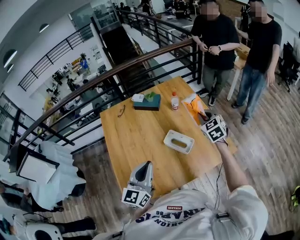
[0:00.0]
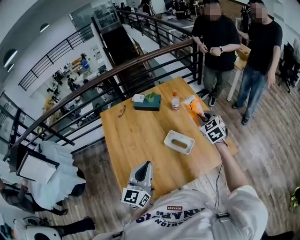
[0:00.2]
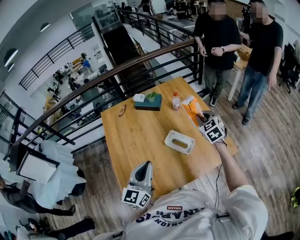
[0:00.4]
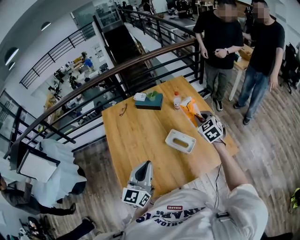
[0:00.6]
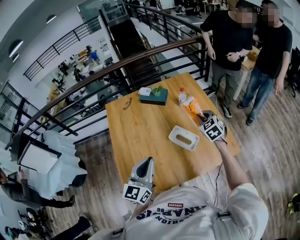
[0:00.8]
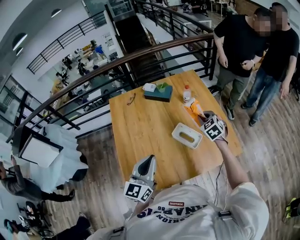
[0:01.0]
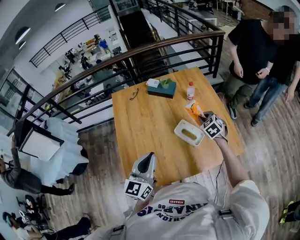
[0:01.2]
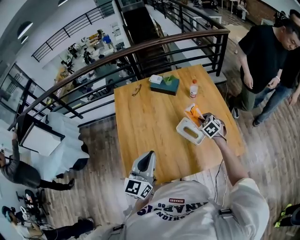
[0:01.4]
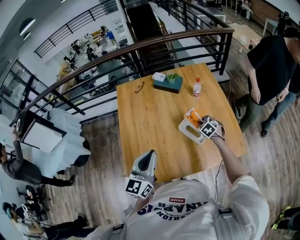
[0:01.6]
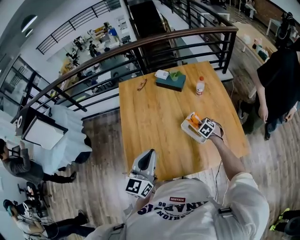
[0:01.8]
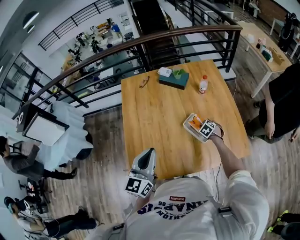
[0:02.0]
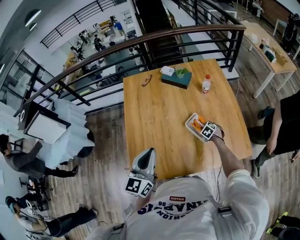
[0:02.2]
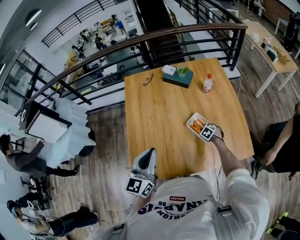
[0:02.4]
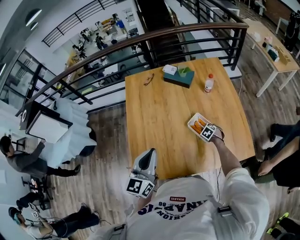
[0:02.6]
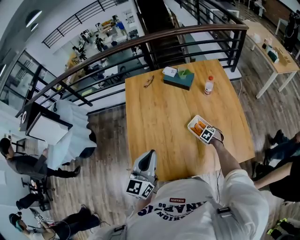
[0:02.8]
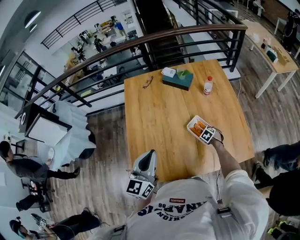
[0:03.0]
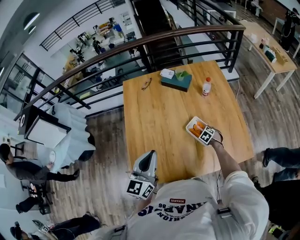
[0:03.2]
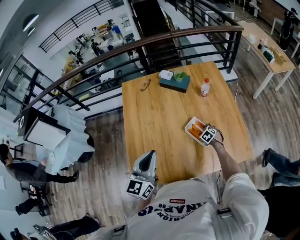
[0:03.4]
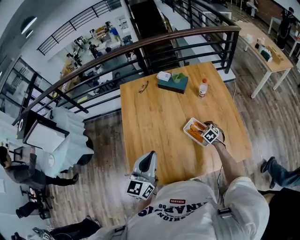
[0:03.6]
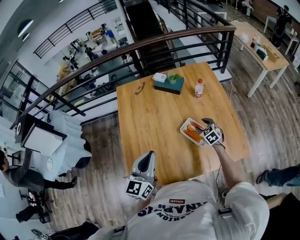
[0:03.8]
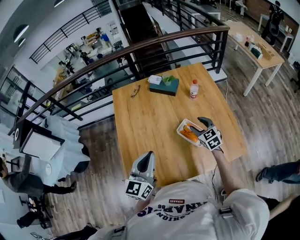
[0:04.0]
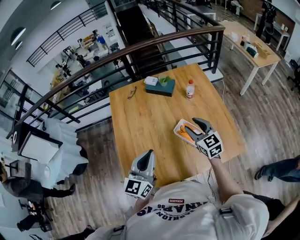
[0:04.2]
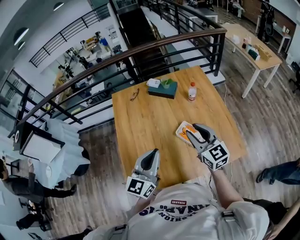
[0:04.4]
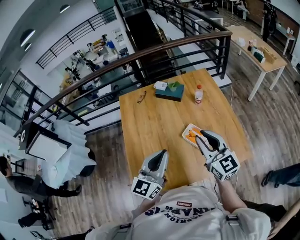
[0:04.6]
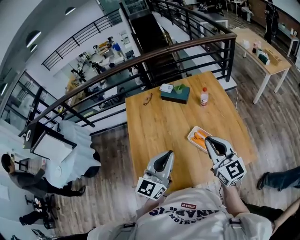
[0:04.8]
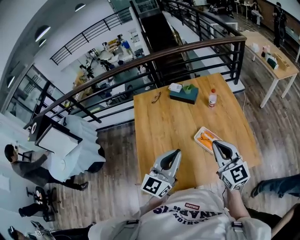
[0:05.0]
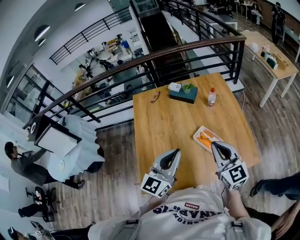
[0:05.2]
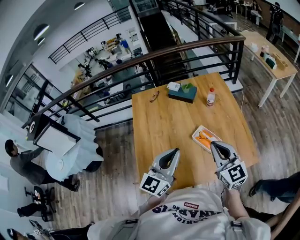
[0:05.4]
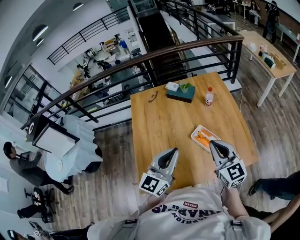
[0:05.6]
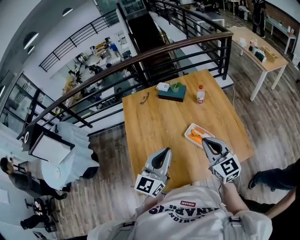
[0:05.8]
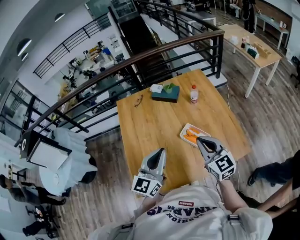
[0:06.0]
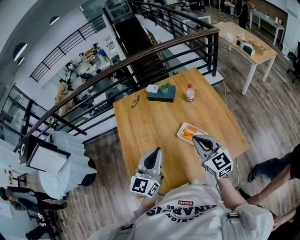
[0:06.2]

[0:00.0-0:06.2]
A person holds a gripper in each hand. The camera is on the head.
0:00.0 to 0:01.6: The left gripper heads to the left, covering some 5 cm. The right gripper shifts about 25 cm downward and to the left, and turns by about 30 degrees.
0:01.6 to 0:03.2: The right gripper is displaced downward by roughly 15 cm.
0:03.2 to 0:04.6: The right gripper heads upward, covering some 50 cm, points its fingers about 70 degrees further upward, and opens, then closes once more, while the left gripper travels to the right and upward by about 10 cm.
0:04.6 to 0:06.2: The grippers move only a little.

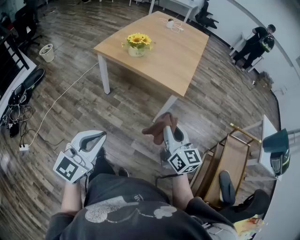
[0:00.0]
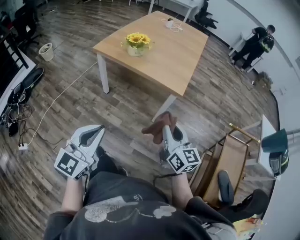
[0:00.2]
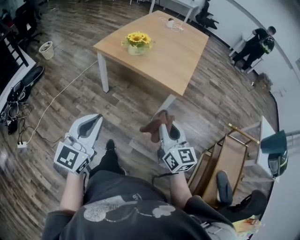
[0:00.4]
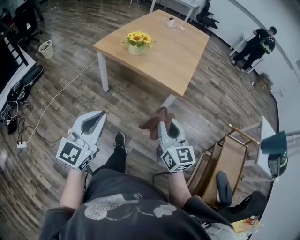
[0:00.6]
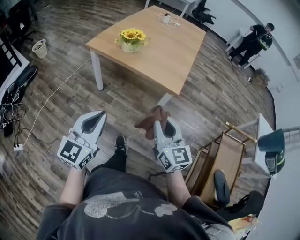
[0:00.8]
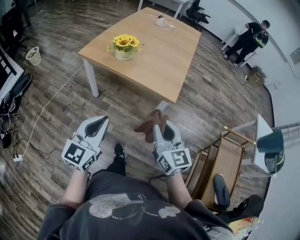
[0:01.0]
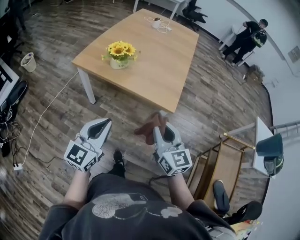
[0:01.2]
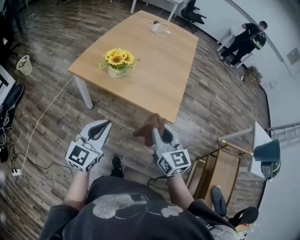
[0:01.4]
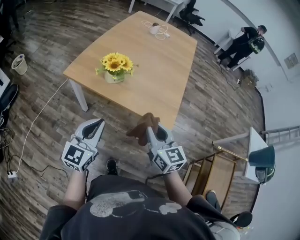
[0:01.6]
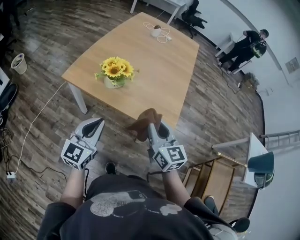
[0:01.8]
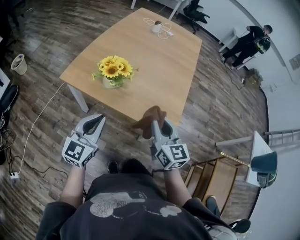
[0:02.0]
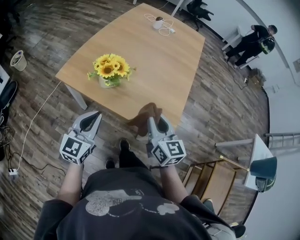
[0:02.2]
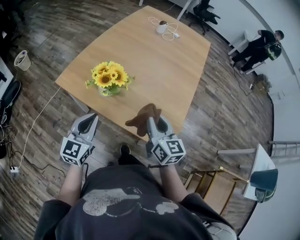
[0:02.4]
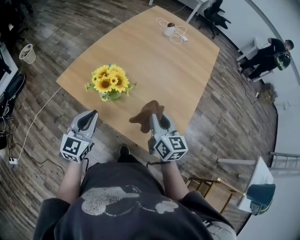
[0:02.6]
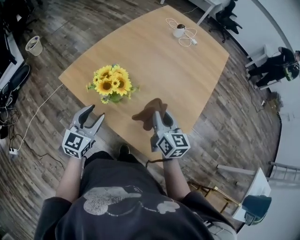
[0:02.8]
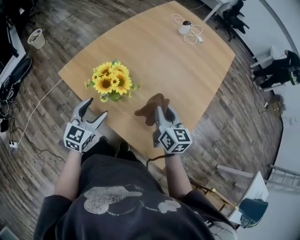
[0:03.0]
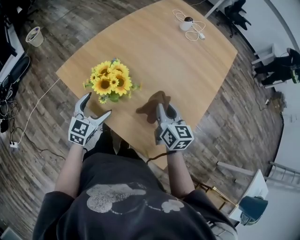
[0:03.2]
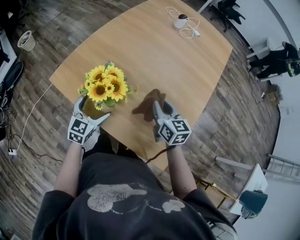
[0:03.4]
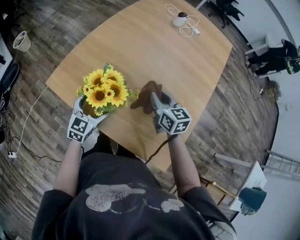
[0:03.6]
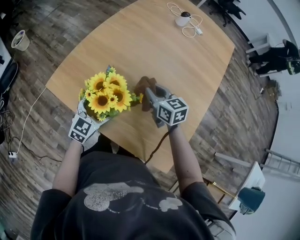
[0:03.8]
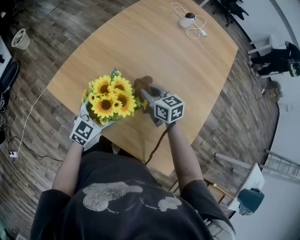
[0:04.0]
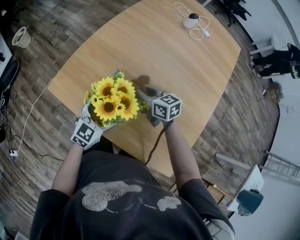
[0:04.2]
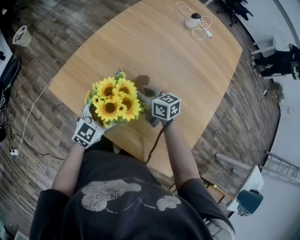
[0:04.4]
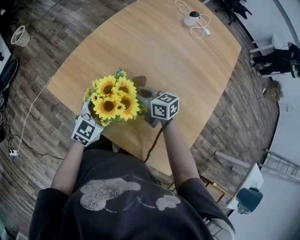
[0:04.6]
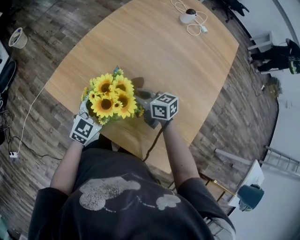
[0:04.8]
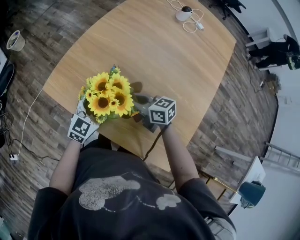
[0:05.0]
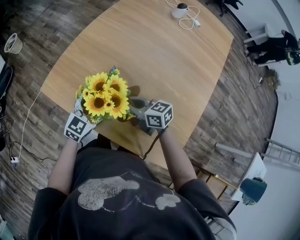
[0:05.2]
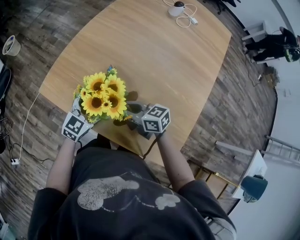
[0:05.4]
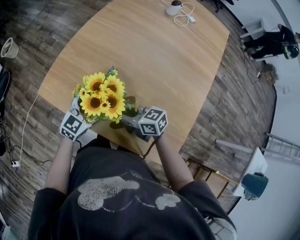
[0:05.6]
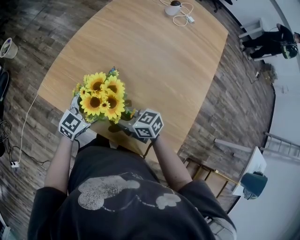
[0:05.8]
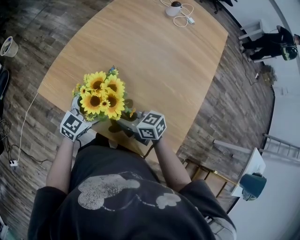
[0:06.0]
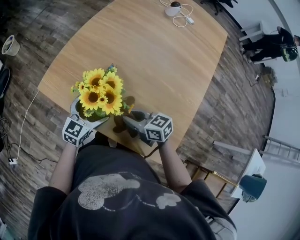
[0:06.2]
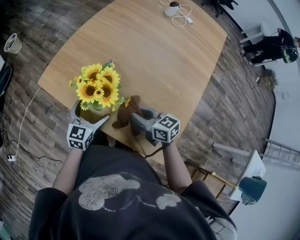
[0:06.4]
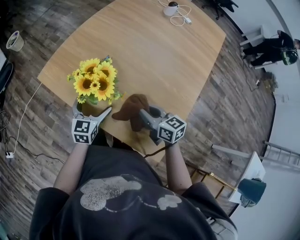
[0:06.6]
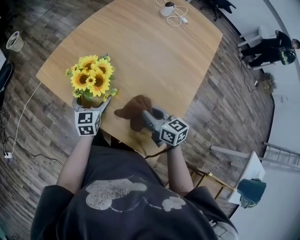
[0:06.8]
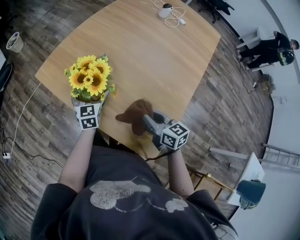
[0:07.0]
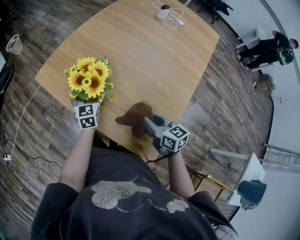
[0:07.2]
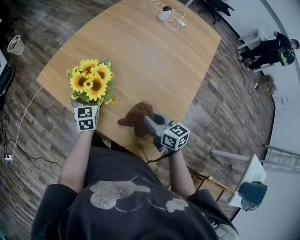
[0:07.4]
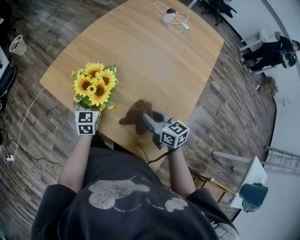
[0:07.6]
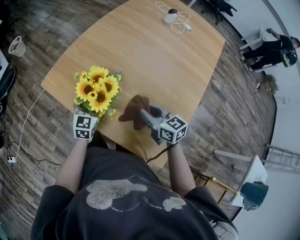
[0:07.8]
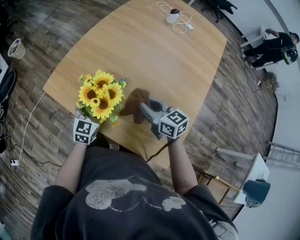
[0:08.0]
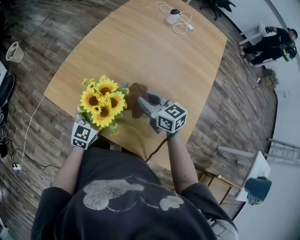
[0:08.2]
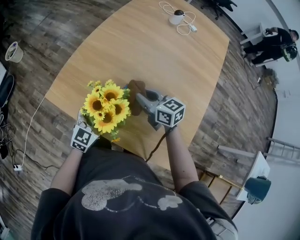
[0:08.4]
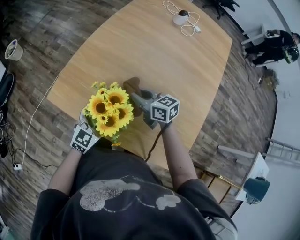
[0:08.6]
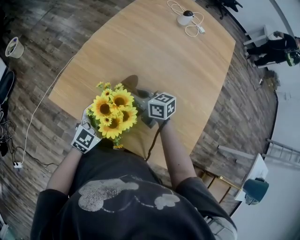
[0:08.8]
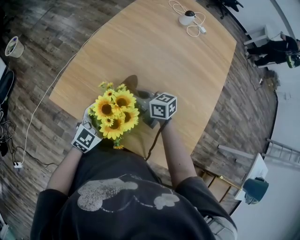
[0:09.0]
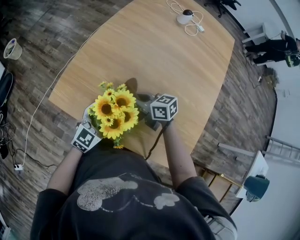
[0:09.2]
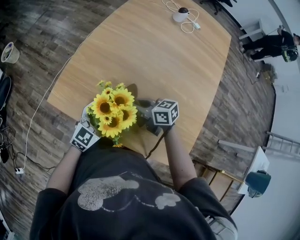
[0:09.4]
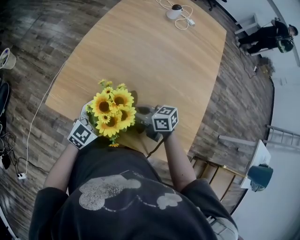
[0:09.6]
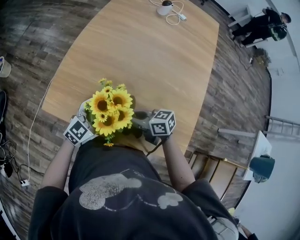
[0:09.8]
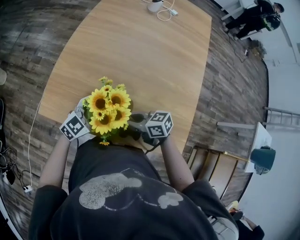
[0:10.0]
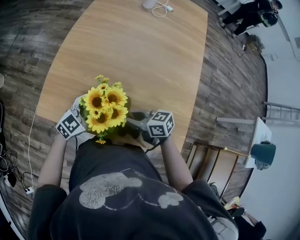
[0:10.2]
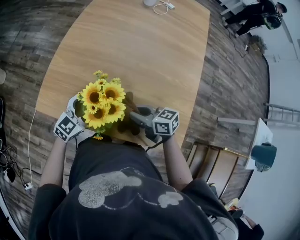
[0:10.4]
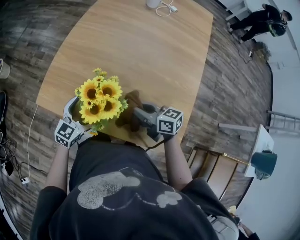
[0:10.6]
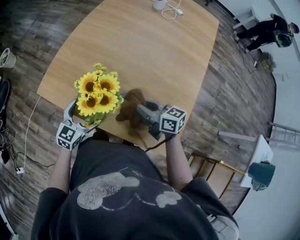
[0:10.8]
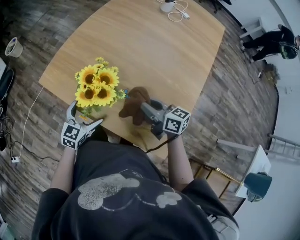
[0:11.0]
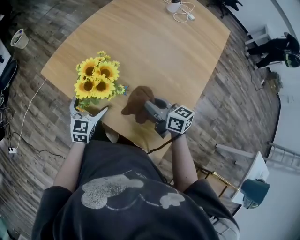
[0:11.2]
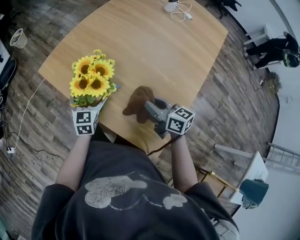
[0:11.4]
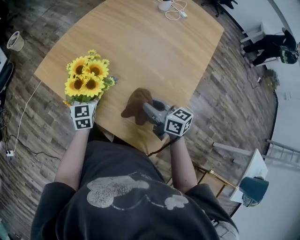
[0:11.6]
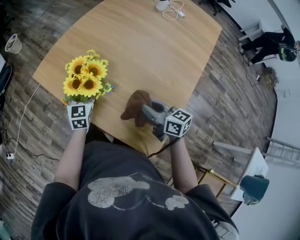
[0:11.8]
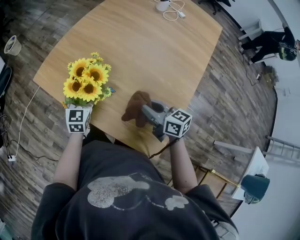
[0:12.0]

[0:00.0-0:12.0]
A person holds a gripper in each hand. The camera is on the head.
0:00.0 to 0:01.6: The grippers both shift forward by about 30 cm.
0:01.6 to 0:03.0: The left gripper heads forward and downward, covering about 25 cm, rotates roughly 20 degrees, and opens; the right gripper goes about 30 cm forward.
0:03.0 to 0:04.4: The left gripper heads forward and downward, covering about 10 cm; the right gripper moves to the left, forward and downward, some 20 cm, and turns by approximately 30 degrees.
0:04.4 to 0:06.0: The right gripper goes roughly 15 cm backward.
0:06.0 to 0:07.6: The left gripper rotates roughly 40 degrees. Meanwhile the right gripper shifts approximately 15 cm to the right, and turns by approximately 20 degrees.
0:07.6 to 0:09.0: The right gripper travels forward and to the left by approximately 25 cm, while the left gripper turns by some 40 degrees.
0:09.0 to 0:10.4: The right gripper changes place by approximately 15 cm.
0:10.4 to 0:12.0: The left gripper rotates roughly 50 degrees. The right gripper shifts by approximately 15 cm.

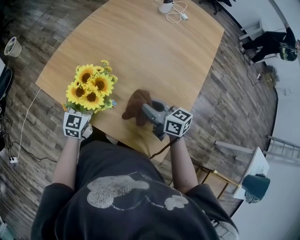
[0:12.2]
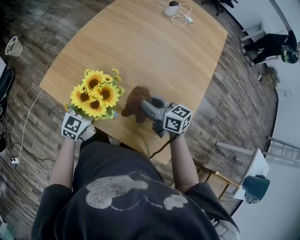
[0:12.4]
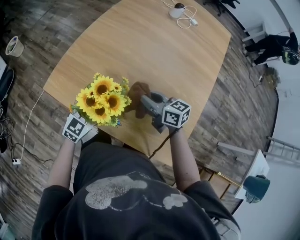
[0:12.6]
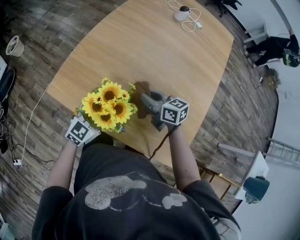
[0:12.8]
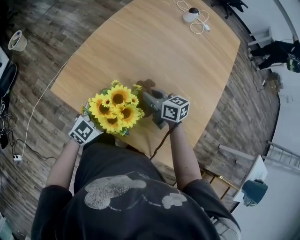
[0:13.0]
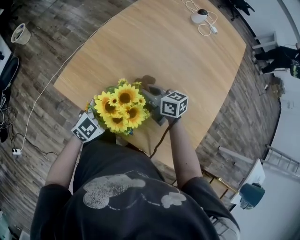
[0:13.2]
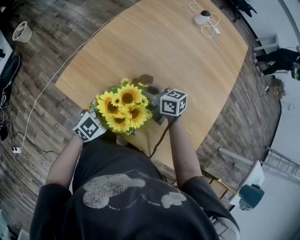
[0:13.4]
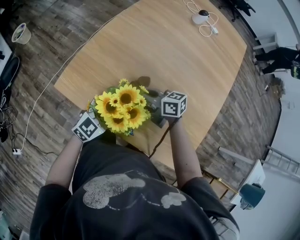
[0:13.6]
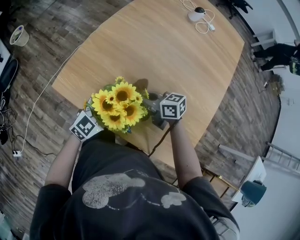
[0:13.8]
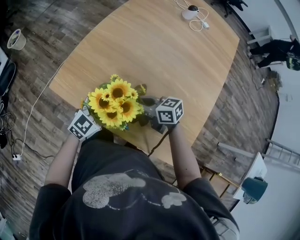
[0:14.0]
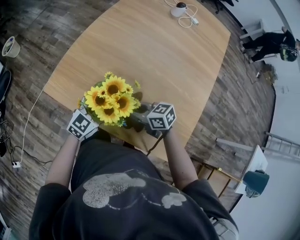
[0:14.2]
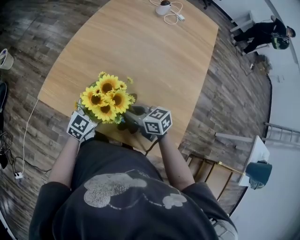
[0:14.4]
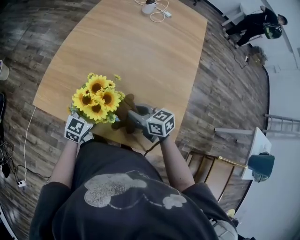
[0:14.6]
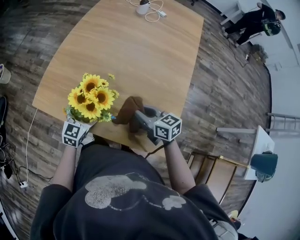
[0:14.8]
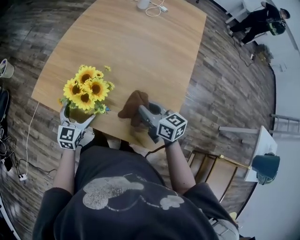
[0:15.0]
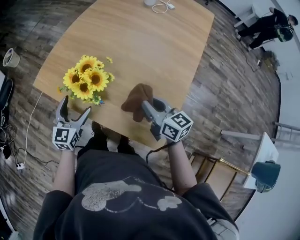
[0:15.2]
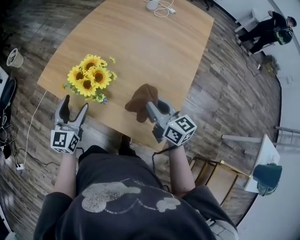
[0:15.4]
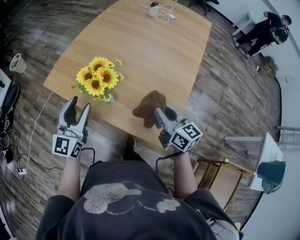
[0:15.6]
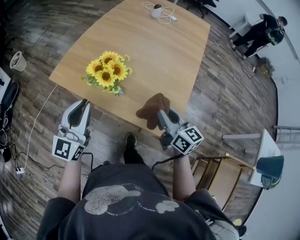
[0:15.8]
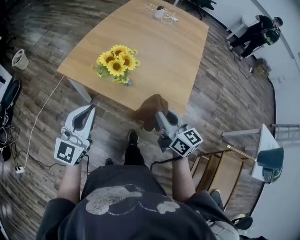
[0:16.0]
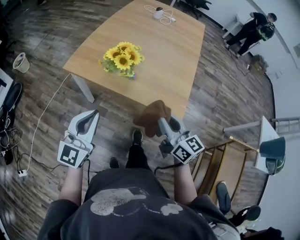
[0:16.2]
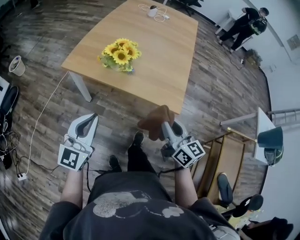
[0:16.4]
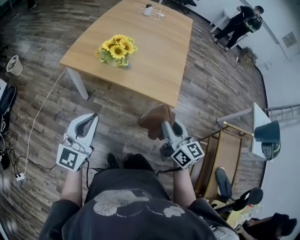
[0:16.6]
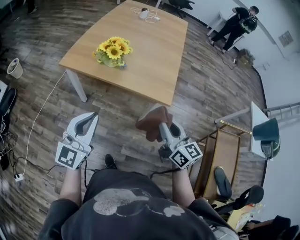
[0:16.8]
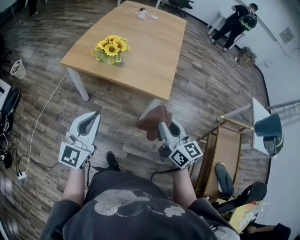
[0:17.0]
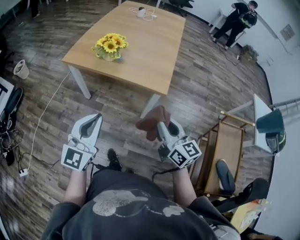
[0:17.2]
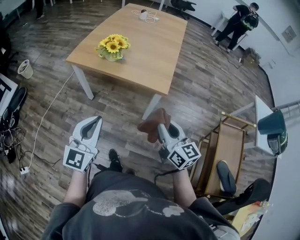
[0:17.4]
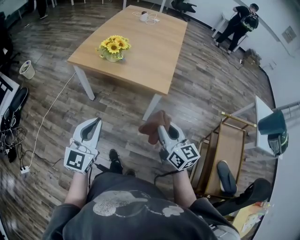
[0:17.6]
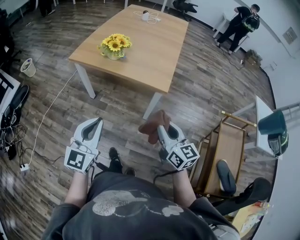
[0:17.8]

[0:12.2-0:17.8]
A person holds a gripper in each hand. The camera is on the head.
0:12.2 to 0:13.6: The right gripper travels to the left and forward by approximately 20 cm. Meanwhile the left gripper changes its angle by about 30 degrees.
0:13.6 to 0:15.0: The left gripper swivels about 30 degrees. The right gripper shifts by roughly 25 cm, and turns by roughly 30 degrees.
0:15.0 to 0:16.4: The right gripper travels backward by roughly 30 cm, and swivels approximately 20 degrees. Meanwhile the left gripper is displaced backward and upward by some 35 cm, rotates some 30 degrees, and closes up.
0:16.4 to 0:17.8: The grippers both shift backward and to the right by approximately 20 cm.
